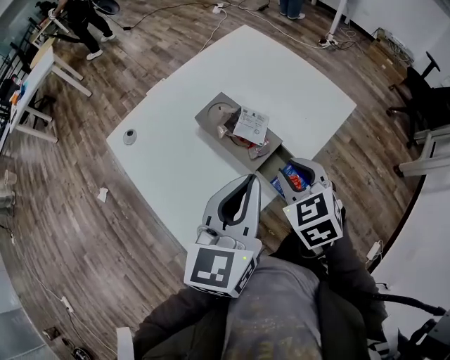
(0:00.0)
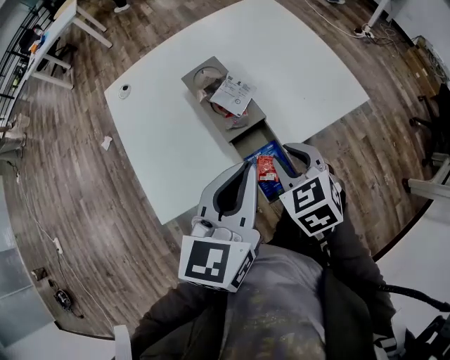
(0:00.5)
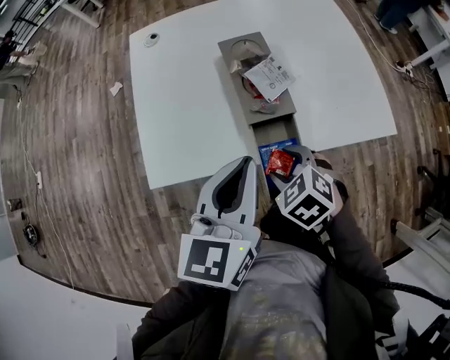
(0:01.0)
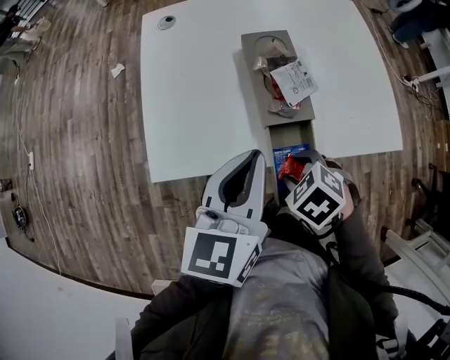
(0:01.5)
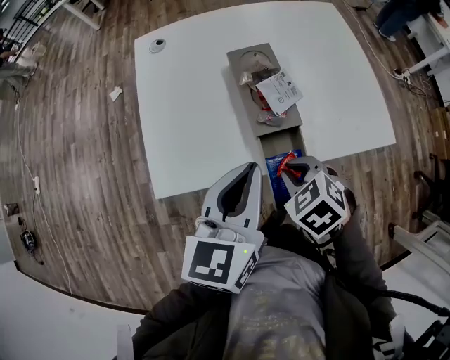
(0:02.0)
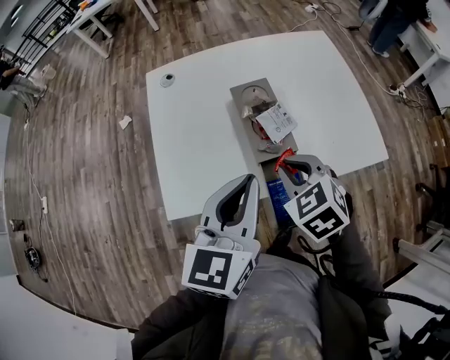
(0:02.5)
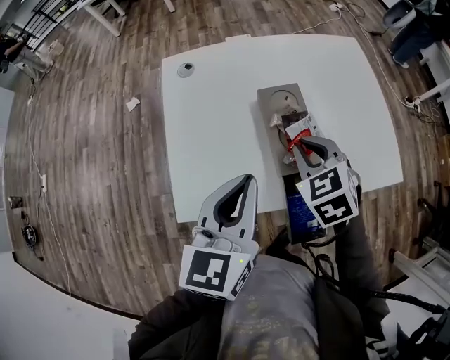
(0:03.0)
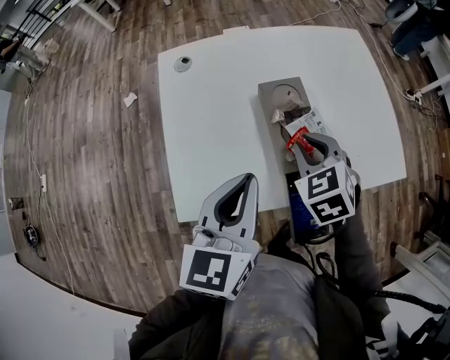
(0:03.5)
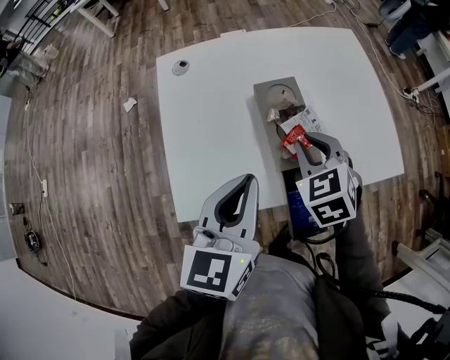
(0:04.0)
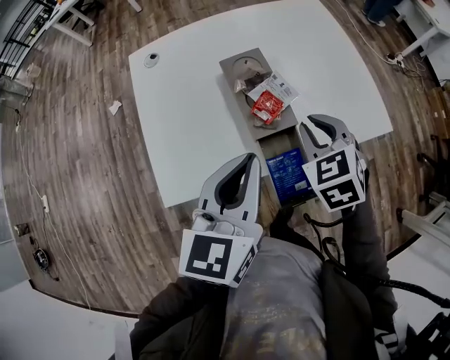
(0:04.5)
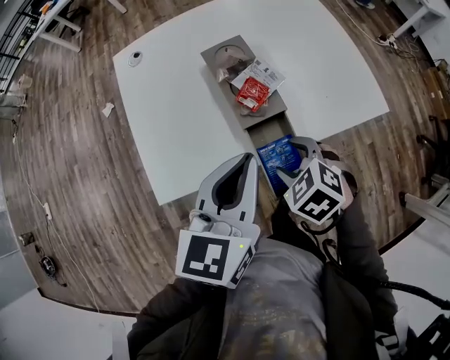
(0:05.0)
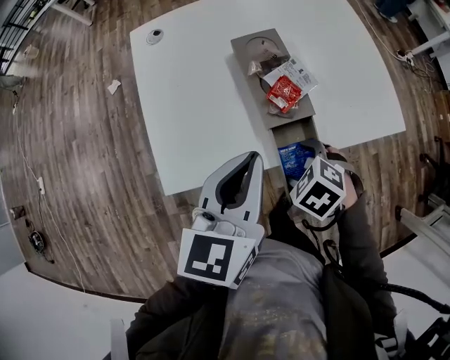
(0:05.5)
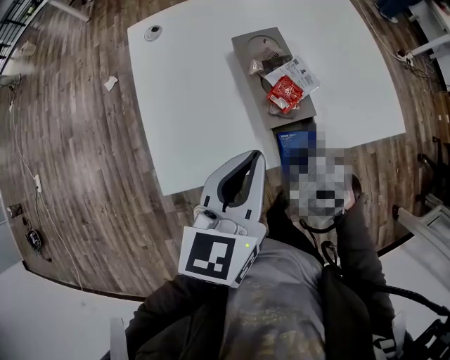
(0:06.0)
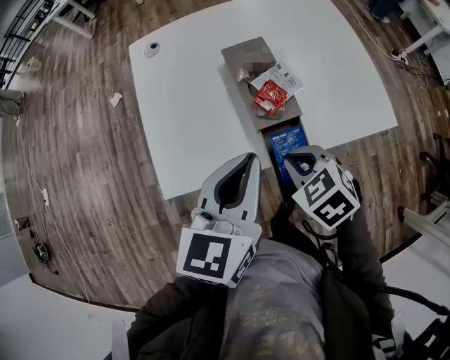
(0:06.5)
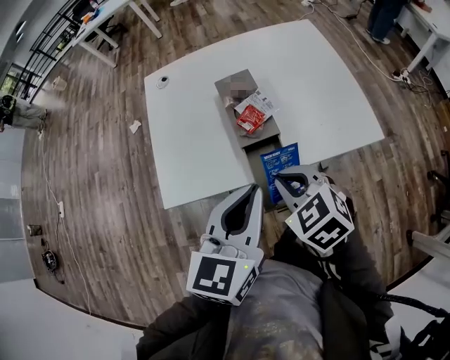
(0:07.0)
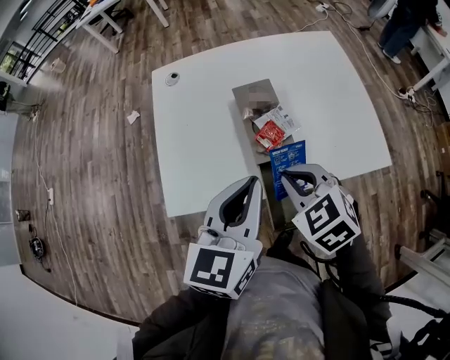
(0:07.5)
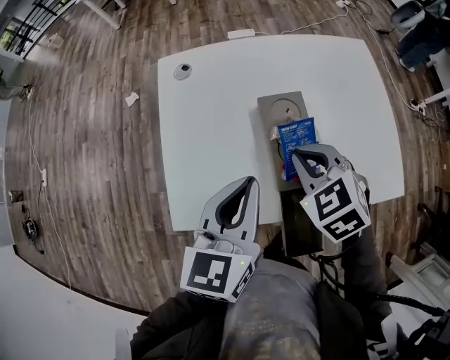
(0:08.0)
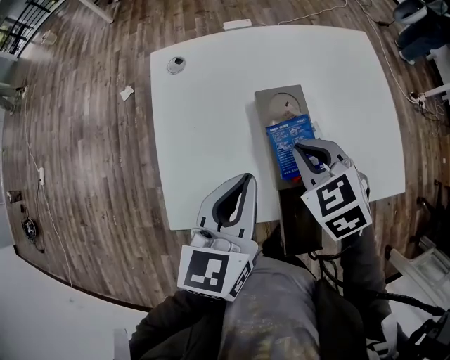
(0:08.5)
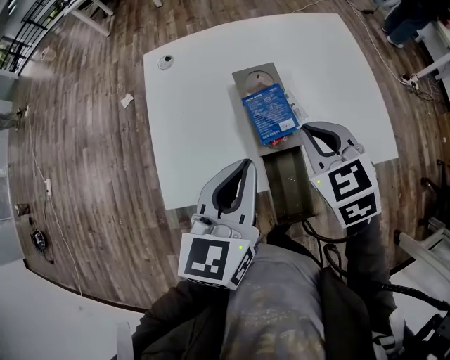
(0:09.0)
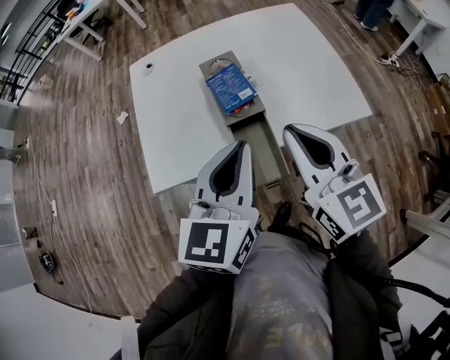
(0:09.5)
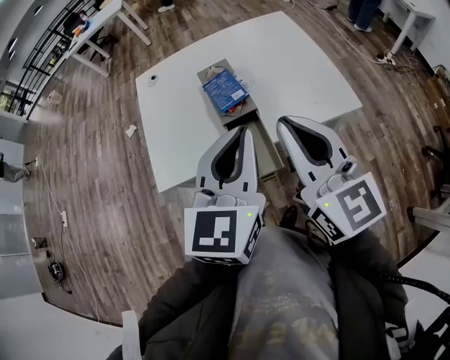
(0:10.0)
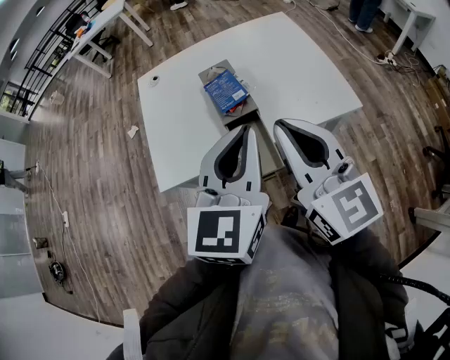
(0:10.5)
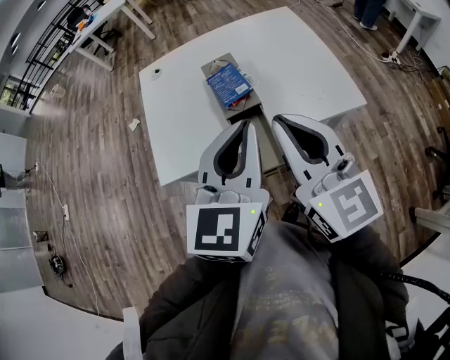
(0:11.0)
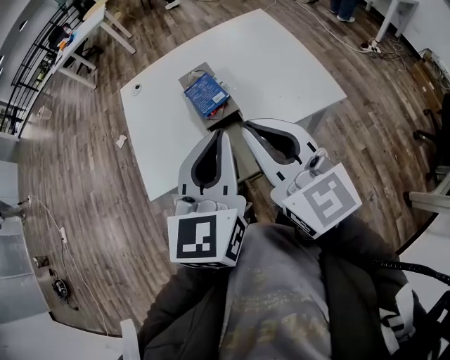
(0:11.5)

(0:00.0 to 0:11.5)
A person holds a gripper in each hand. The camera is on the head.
0:00.0 - 0:02.0: The left gripper is displaced downward by some 5 cm, and changes its angle by about 30 degrees, while the right gripper goes about 10 cm downward, rotates some 50 degrees, and opens, then closes again.
0:02.0 - 0:04.0: The left gripper is displaced forward and to the left by about 10 cm. Meanwhile the right gripper travels forward and upward by some 15 cm, and rotates some 20 degrees.
0:04.0 - 0:06.0: The right gripper changes place by approximately 15 cm, changes its angle by roughly 30 degrees, and opens, then closes once more. Meanwhile the left gripper ends up approximately 5 cm from where it was.
0:06.0 - 0:07.5: The right gripper travels upward by approximately 15 cm, and swivels some 20 degrees; the left gripper moves upward, some 5 cm, and moves roughly 10 cm backward and comes back.
0:07.5 - 0:09.5: The left gripper is displaced backward by some 5 cm. The right gripper heads upward and to the right, covering roughly 15 cm, reaches about 15 cm forward, then returns, and tips its fingers upward by roughly 40 degrees.
0:09.5 - 0:11.5: The right gripper changes place by approximately 5 cm. Meanwhile the left gripper changes place by some 5 cm.

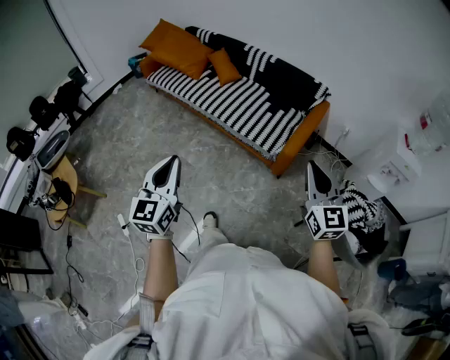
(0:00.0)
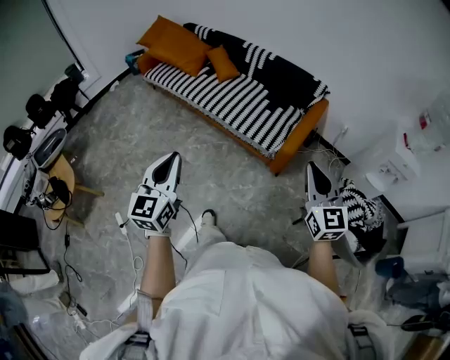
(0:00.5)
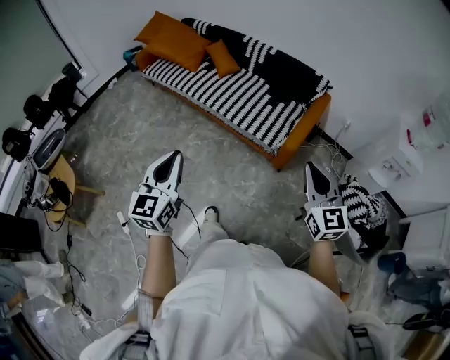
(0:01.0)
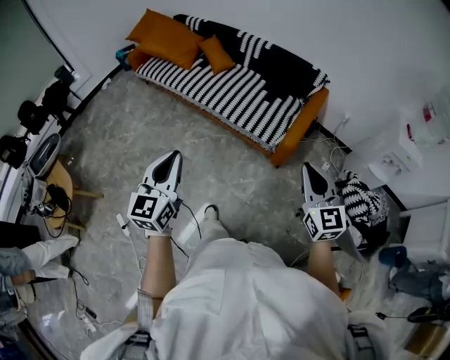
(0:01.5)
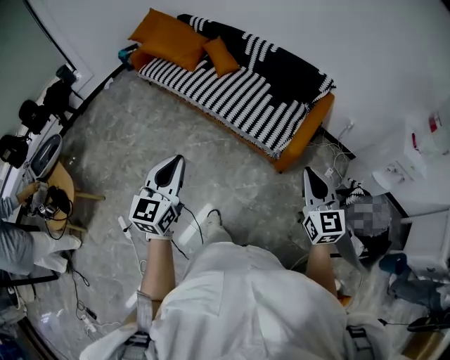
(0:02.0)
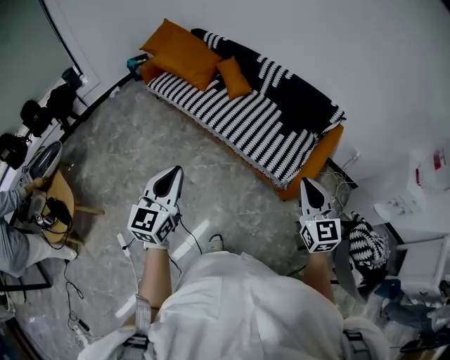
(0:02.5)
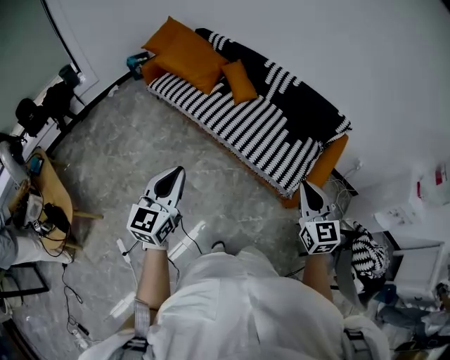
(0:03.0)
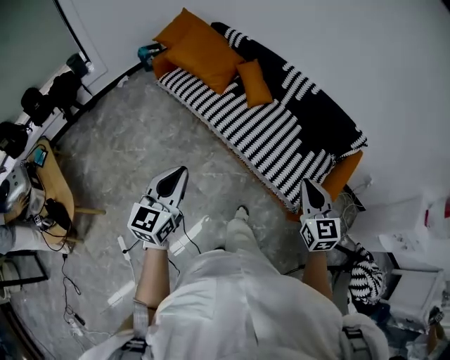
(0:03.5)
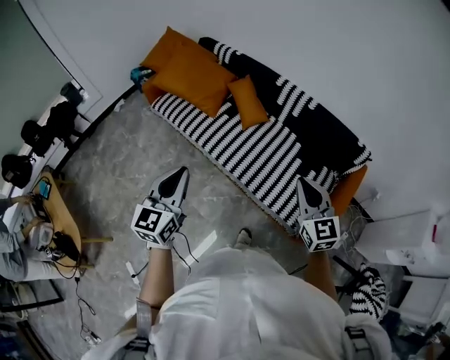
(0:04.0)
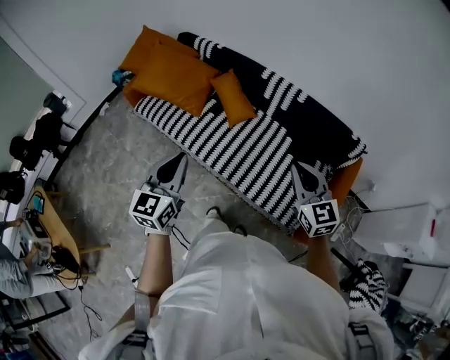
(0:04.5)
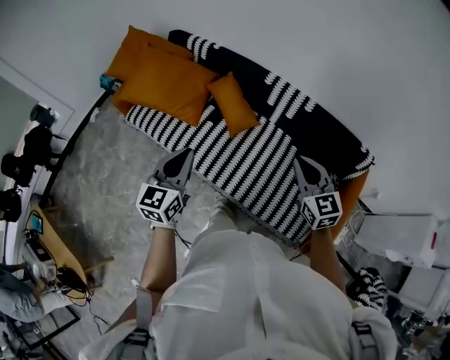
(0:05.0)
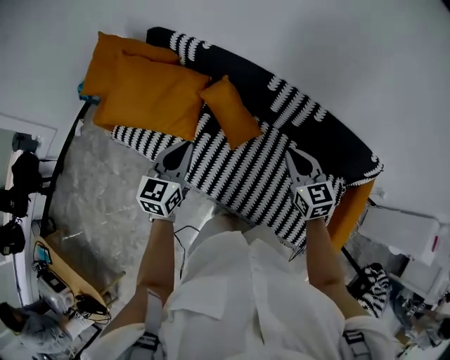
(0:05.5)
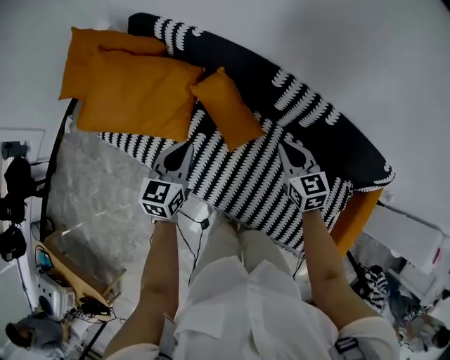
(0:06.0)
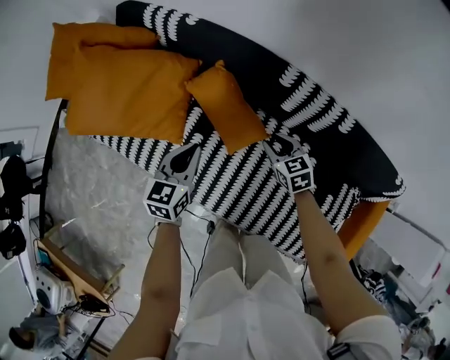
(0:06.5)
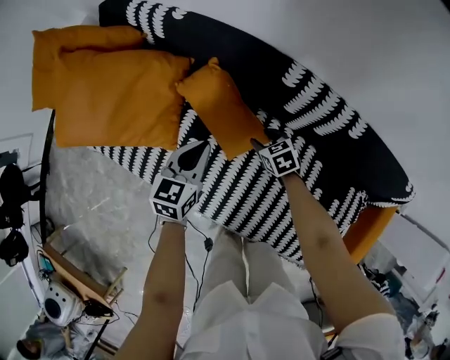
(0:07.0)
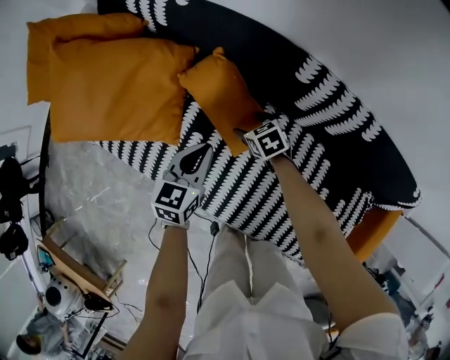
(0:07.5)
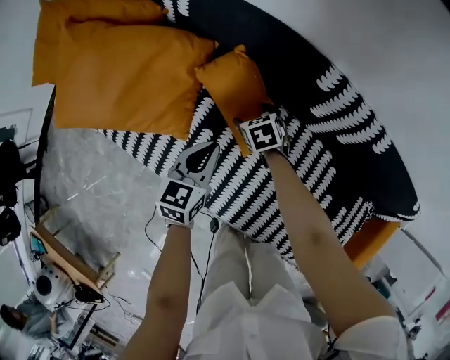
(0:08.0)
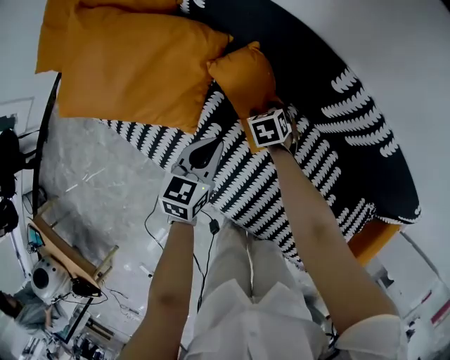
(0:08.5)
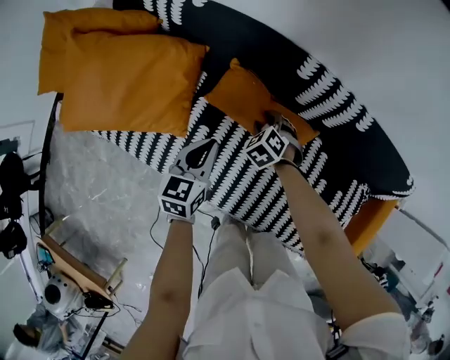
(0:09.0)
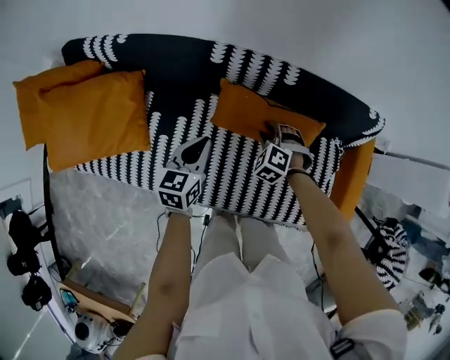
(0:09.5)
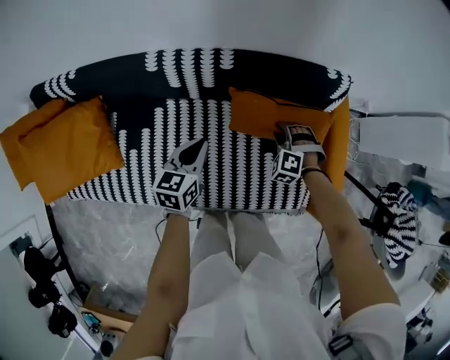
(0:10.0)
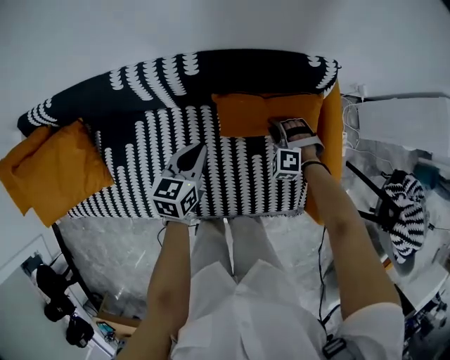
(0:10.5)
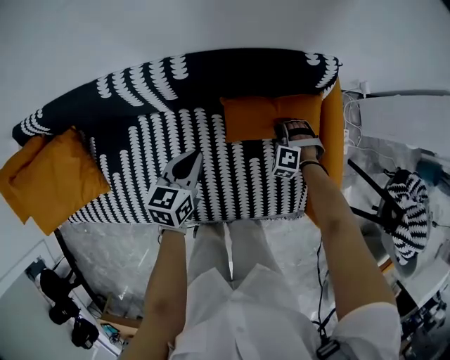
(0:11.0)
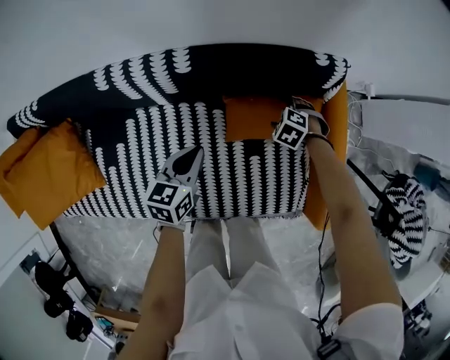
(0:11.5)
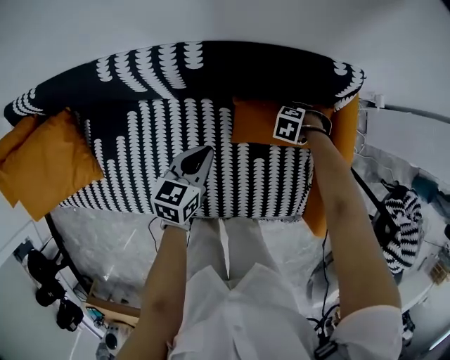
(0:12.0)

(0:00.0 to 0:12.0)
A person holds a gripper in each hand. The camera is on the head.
0:00.0 - 0:02.0: The left gripper goes roughly 10 cm forward. The right gripper shifts about 10 cm forward and downward.
0:02.0 - 0:04.0: The two grippers travel together, forward, some 40 cm.
0:04.0 - 0:06.0: The two grippers travel together, forward, roughly 50 cm. The two grippers go roughly 25 cm downward. The right gripper changes its angle by approximately 20 degrees. Meanwhile the left gripper swivels roughly 20 degrees.
0:06.0 - 0:08.0: The left gripper moves downward, roughly 20 cm. The right gripper heads downward, forward and to the left, covering approximately 35 cm, tips its fingers downward by roughly 30 degrees, and opens its fingers.
0:08.0 - 0:10.0: The right gripper moves some 60 cm, turns by some 50 degrees, and closes. Meanwhile the left gripper moves about 35 cm, and changes its angle by some 30 degrees.
0:10.0 - 0:12.0: The right gripper goes roughly 15 cm downward, swivels about 50 degrees, and opens. Meanwhile the left gripper ends up some 15 cm from where it was.

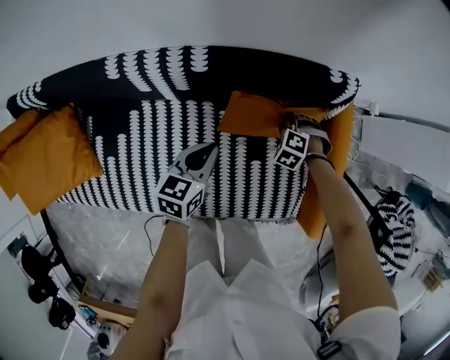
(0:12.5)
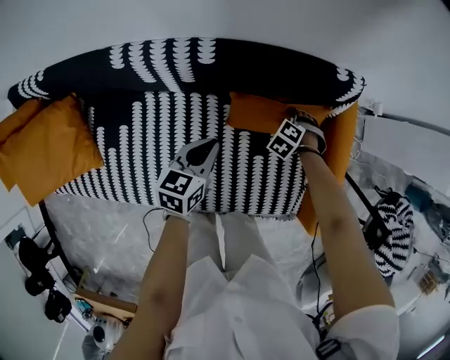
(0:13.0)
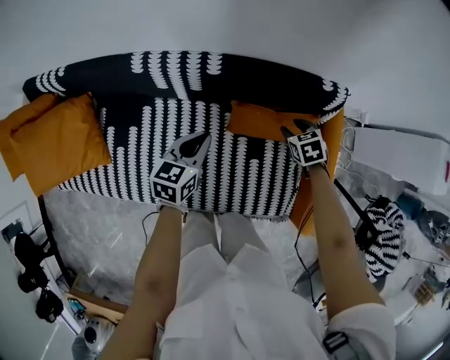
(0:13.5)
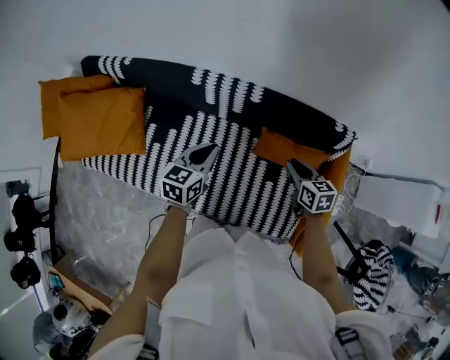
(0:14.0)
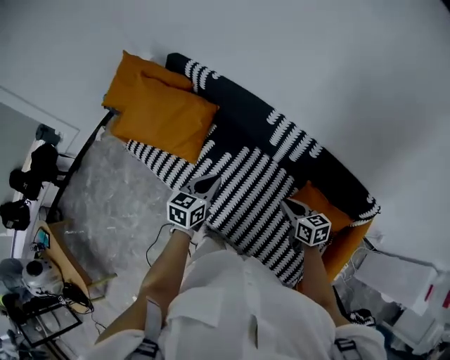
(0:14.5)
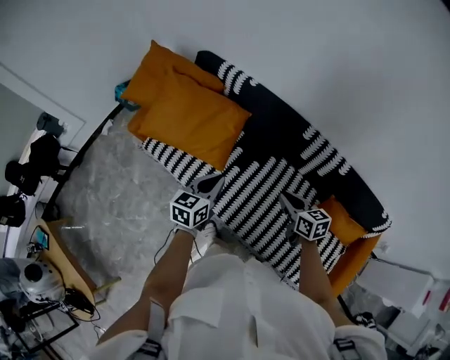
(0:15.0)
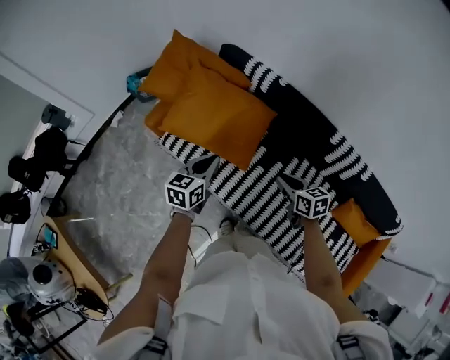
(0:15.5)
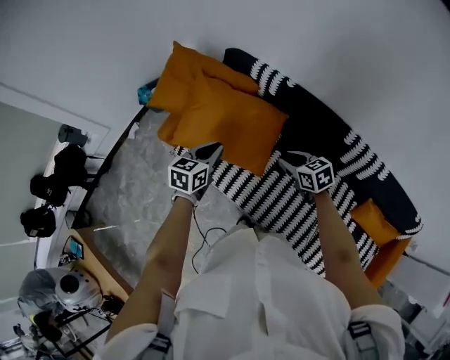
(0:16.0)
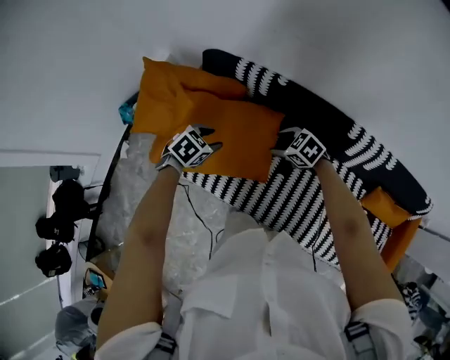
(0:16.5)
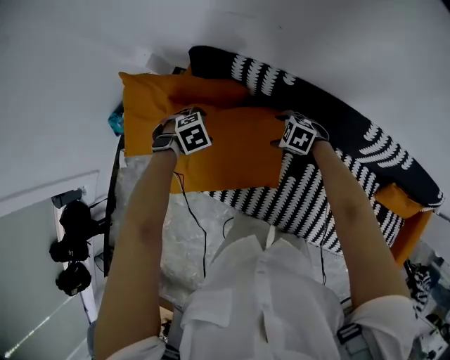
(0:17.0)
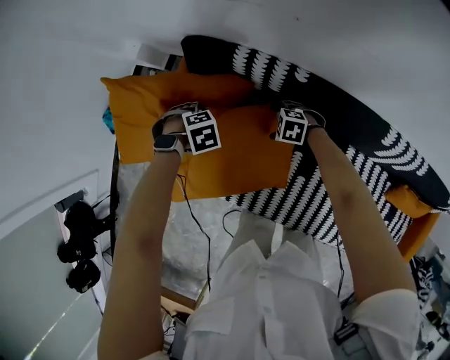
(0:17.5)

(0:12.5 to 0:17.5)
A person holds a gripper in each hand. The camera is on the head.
0:12.5 - 0:15.0: The two grippers travel together, approximately 50 cm. The right gripper angles its fingers upward, by about 40 degrees. The left gripper swivels about 40 degrees.
0:15.0 - 0:17.5: The two grippers travel together, some 50 cm. The left gripper points its fingers about 60 degrees further downward, and opens up; the right gripper tips its fingers downward by some 30 degrees, and opens.
